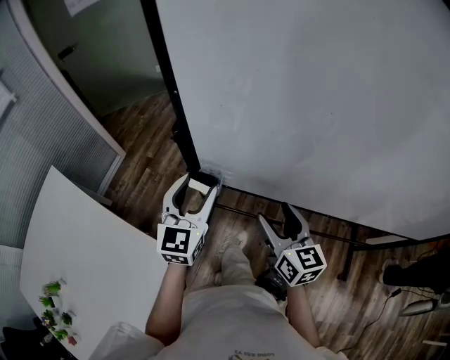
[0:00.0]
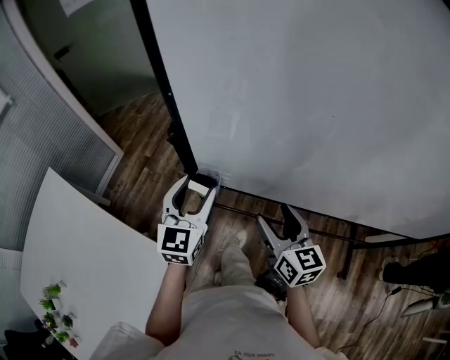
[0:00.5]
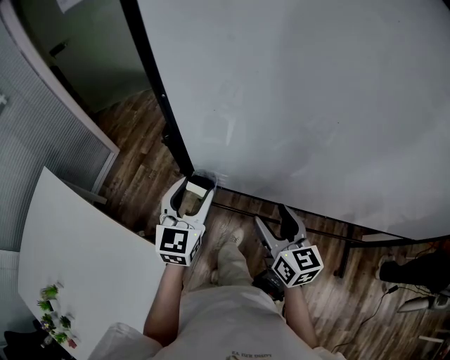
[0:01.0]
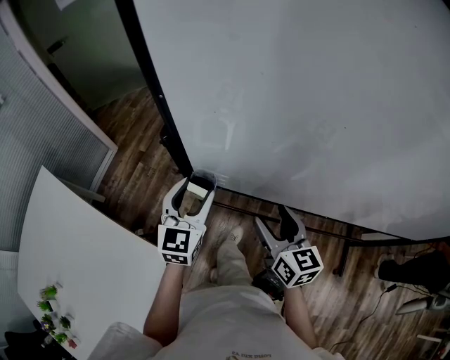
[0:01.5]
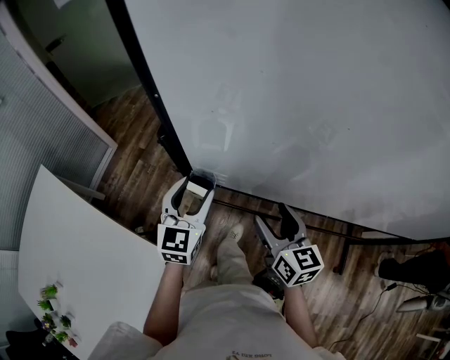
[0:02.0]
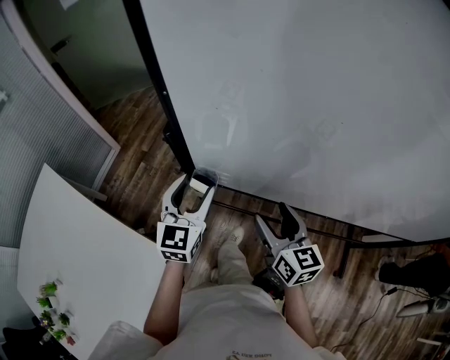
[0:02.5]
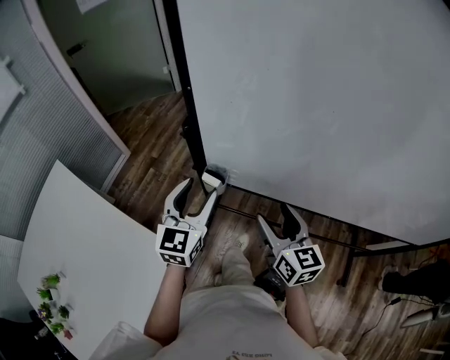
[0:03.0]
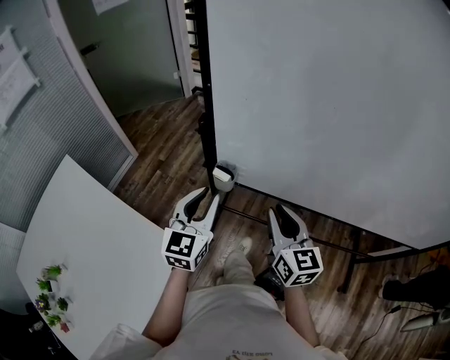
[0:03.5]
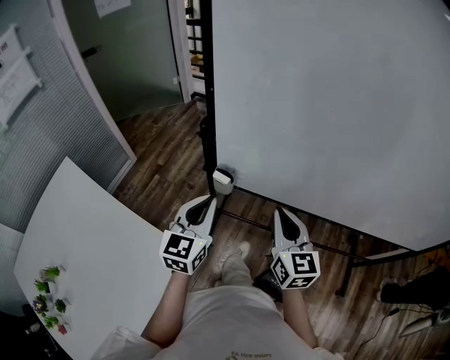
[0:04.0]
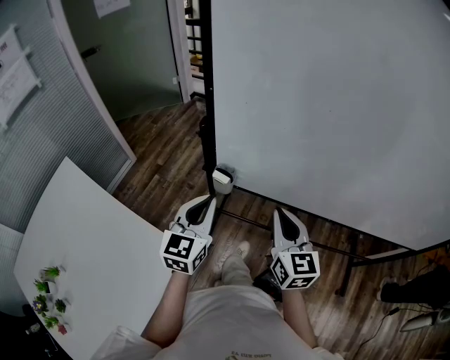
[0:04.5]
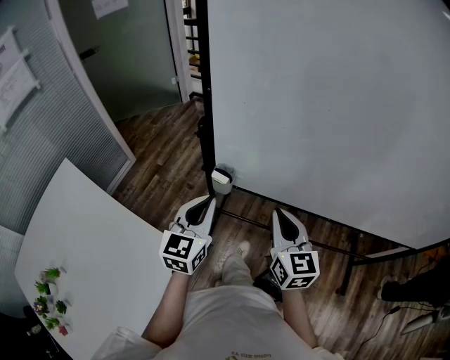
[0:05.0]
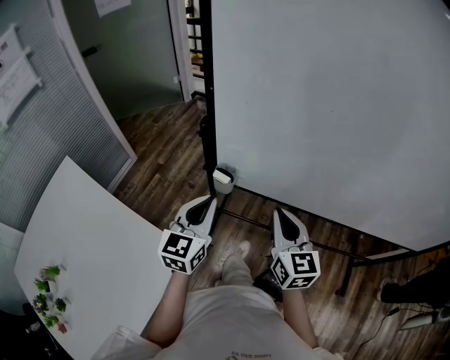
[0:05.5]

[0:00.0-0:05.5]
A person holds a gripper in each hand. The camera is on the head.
0:00.0 to 0:02.0: The left gripper moves downward, approximately 5 cm.
0:02.0 to 0:03.5: The right gripper moves upward and backward, roughly 10 cm, and closes up, while the left gripper goes some 10 cm backward and upward, and closes.
0:03.5 to 0:05.5: The grippers move only a little.

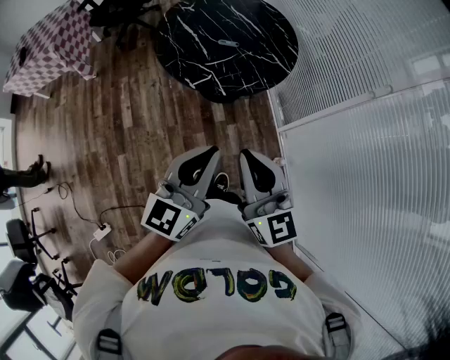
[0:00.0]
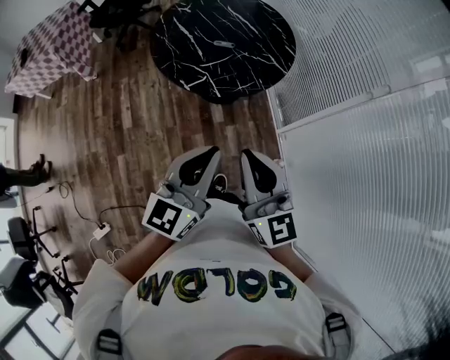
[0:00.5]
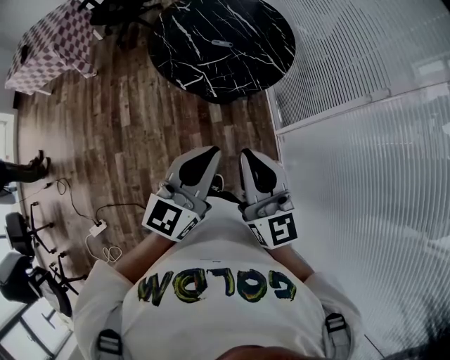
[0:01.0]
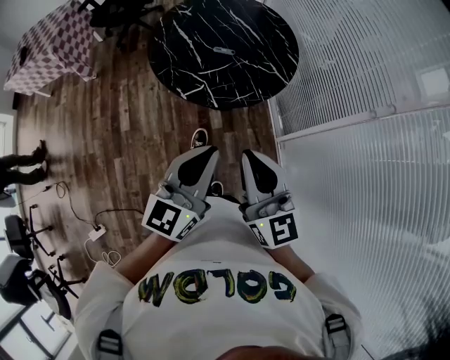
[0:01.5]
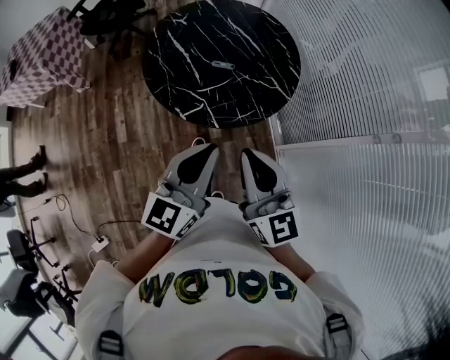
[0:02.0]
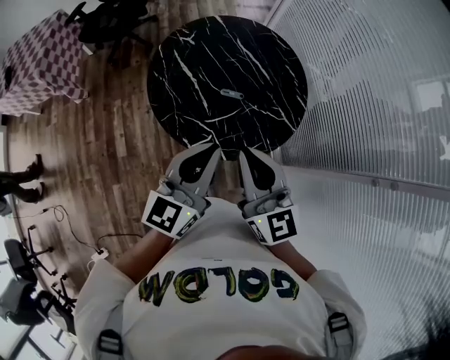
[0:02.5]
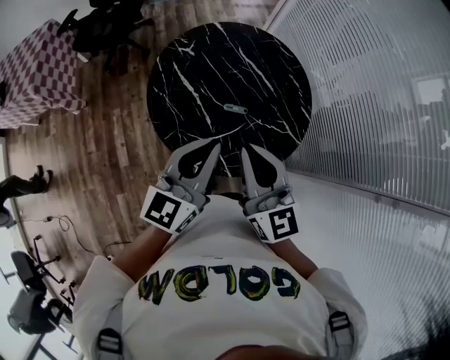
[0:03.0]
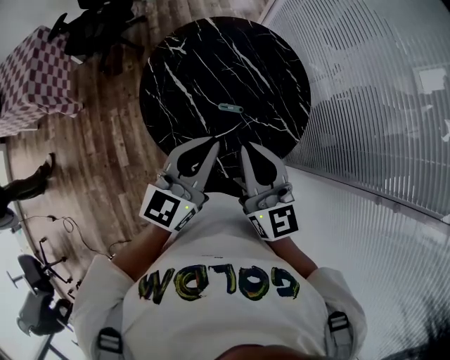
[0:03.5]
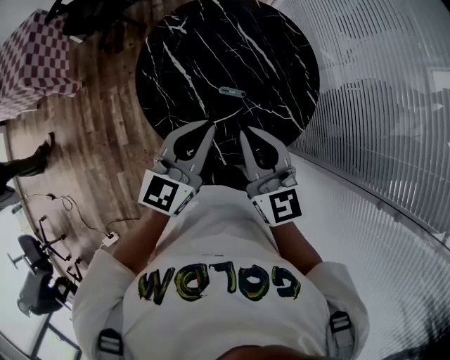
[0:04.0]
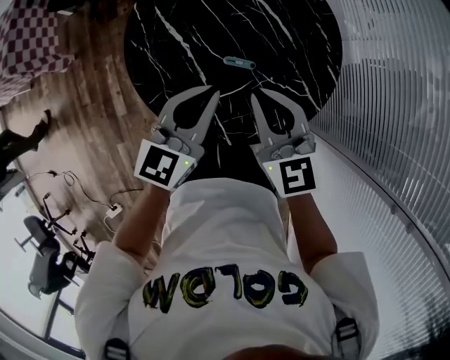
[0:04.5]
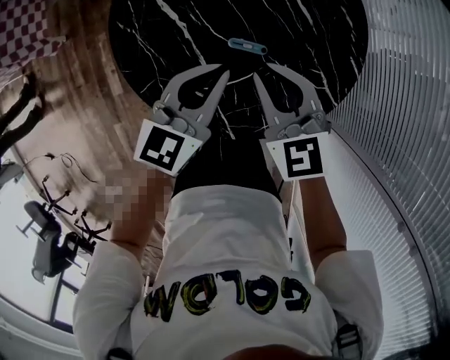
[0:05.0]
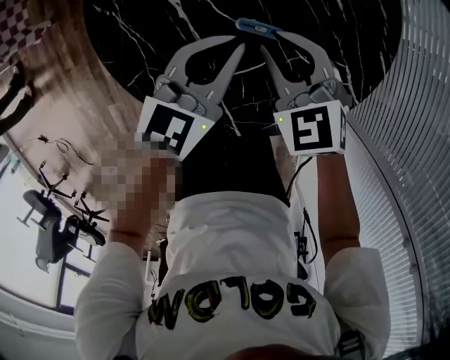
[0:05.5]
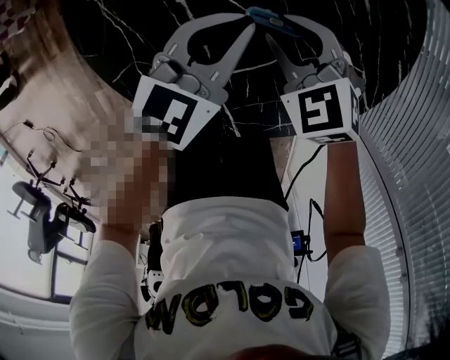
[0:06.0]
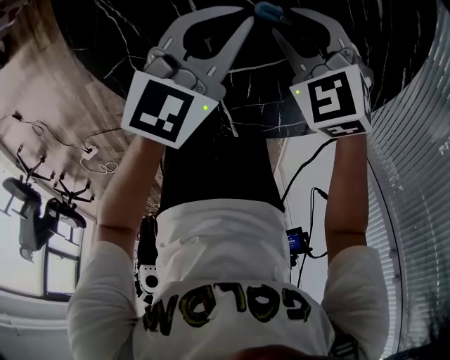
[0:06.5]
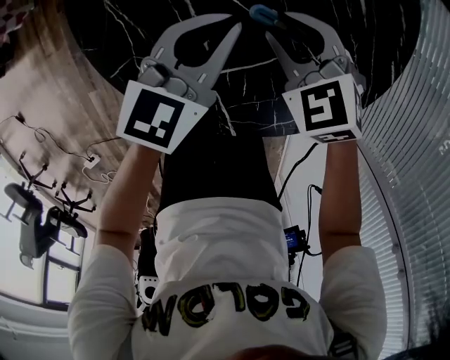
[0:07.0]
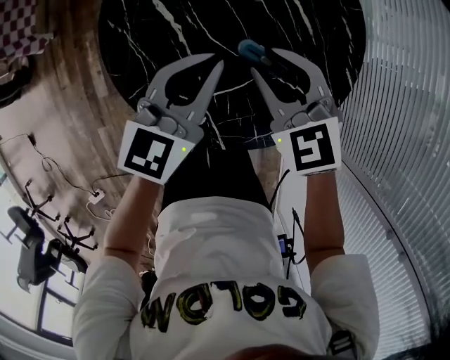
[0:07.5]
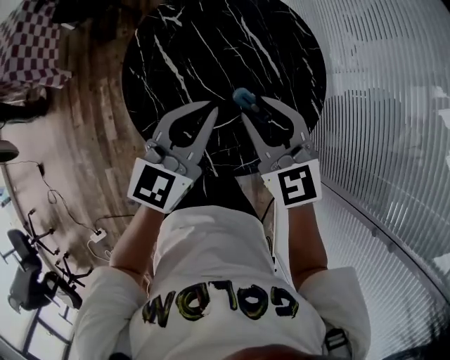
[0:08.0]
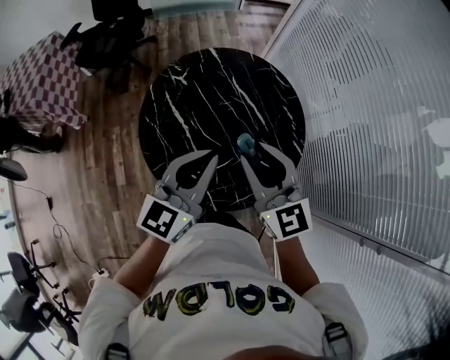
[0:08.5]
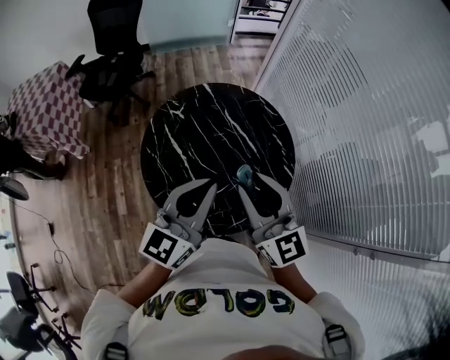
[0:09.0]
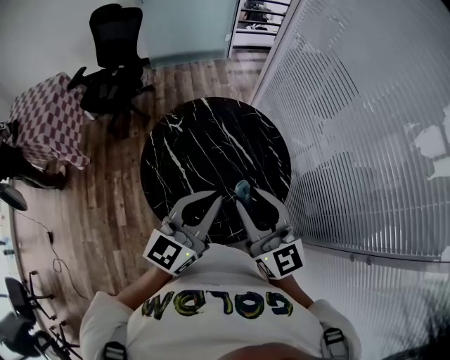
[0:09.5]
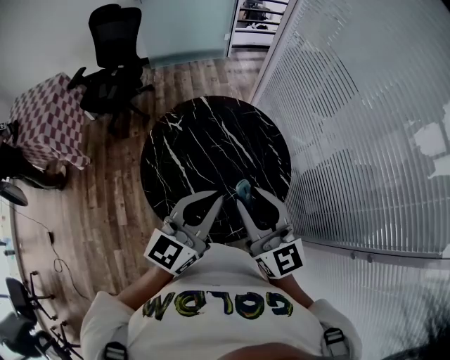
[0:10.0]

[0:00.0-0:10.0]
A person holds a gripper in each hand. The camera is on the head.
0:00.0 to 0:02.0: The two grippers go some 20 cm forward.
0:02.0 to 0:04.0: Both grippers travel together forward, some 30 cm.
0:04.0 to 0:06.0: The right gripper travels downward by roughly 40 cm, tilts its fingers about 40 degrees downward, and opens. Meanwhile the left gripper moves downward and forward, approximately 35 cm.
0:06.0 to 0:08.0: Both grippers move upward, approximately 30 cm. The right gripper rotates roughly 30 degrees.
0:08.0 to 0:10.0: The two grippers go some 20 cm upward and backward. The right gripper tips its fingers upward by approximately 30 degrees.

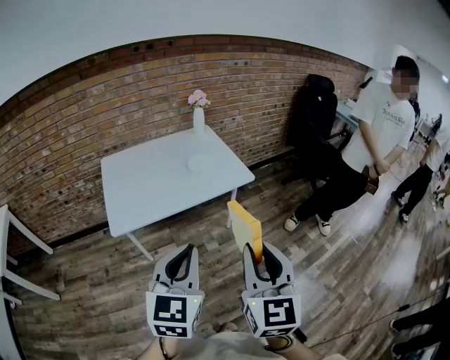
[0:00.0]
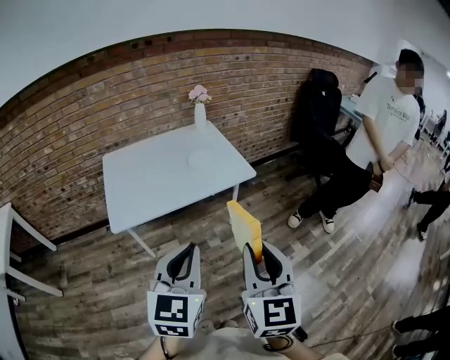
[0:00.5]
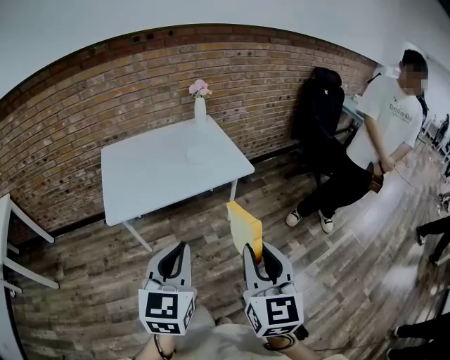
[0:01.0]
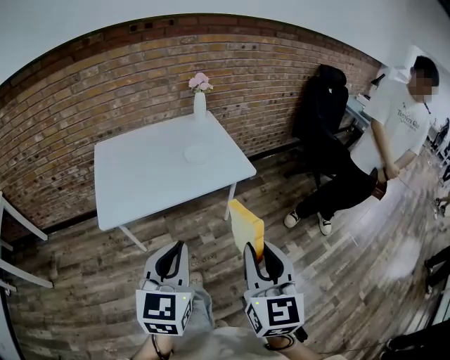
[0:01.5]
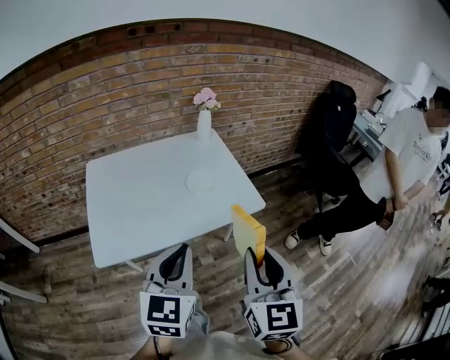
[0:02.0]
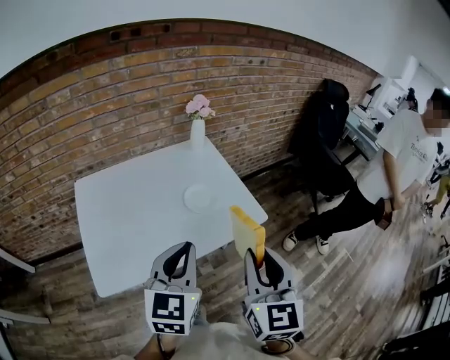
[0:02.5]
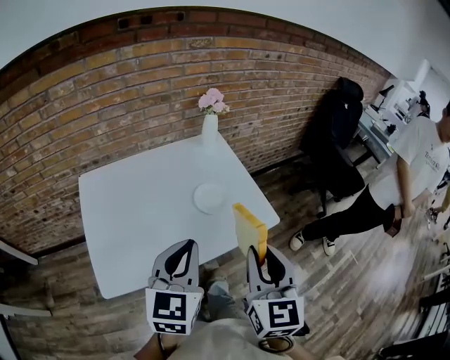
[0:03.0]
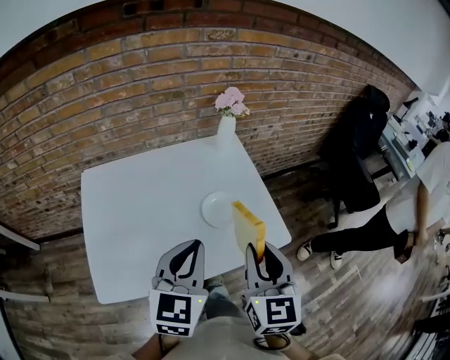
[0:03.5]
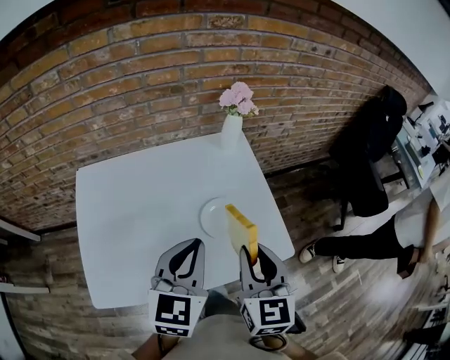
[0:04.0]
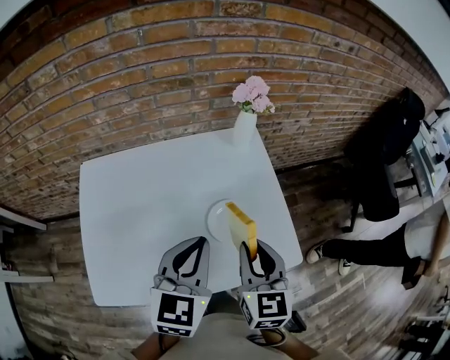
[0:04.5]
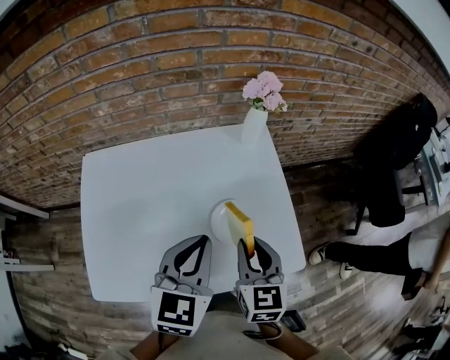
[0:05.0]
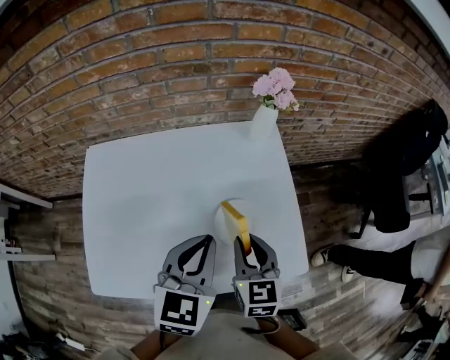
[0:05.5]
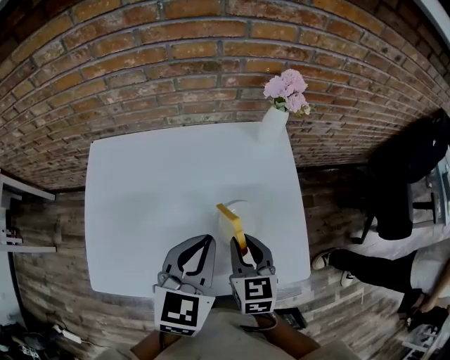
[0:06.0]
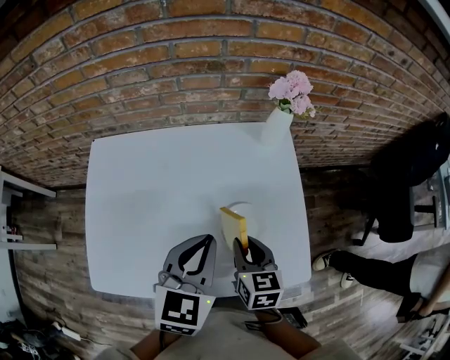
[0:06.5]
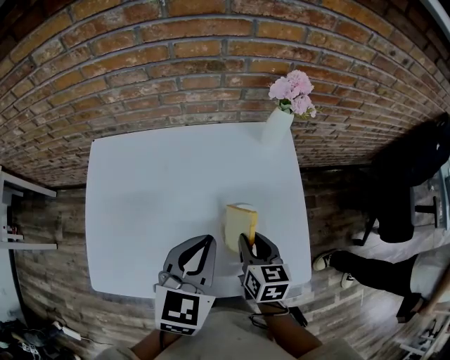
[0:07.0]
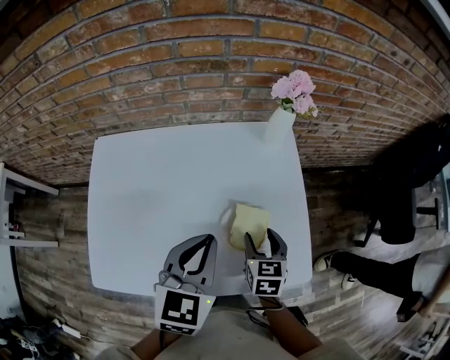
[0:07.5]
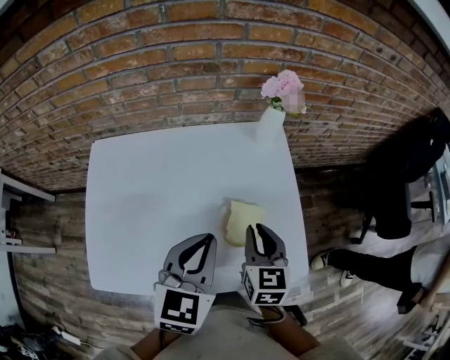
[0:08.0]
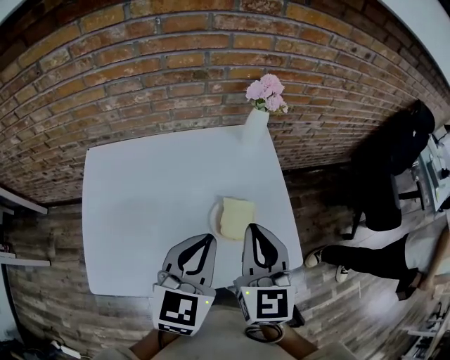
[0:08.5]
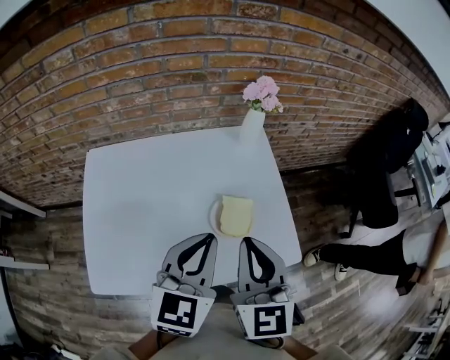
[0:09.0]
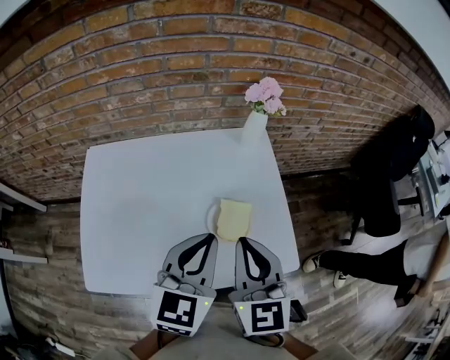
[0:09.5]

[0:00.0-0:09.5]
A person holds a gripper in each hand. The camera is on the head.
0:00.0 to 0:02.0: Both grippers move forward, about 20 cm.
0:02.0 to 0:04.0: The grippers both shift forward by approximately 30 cm.
0:04.0 to 0:05.5: The left gripper moves forward, approximately 5 cm. The right gripper is displaced downward and forward by roughly 15 cm.
0:05.5 to 0:07.5: The right gripper goes about 10 cm downward, and opens.
0:07.5 to 0:09.5: The right gripper goes approximately 20 cm upward, rotates roughly 30 degrees, and closes up. Meanwhile the left gripper changes place by some 5 cm.

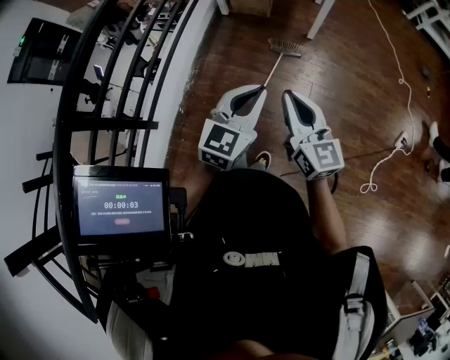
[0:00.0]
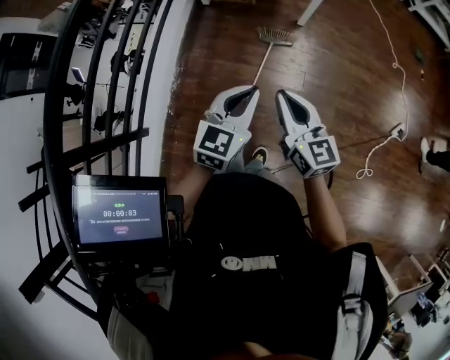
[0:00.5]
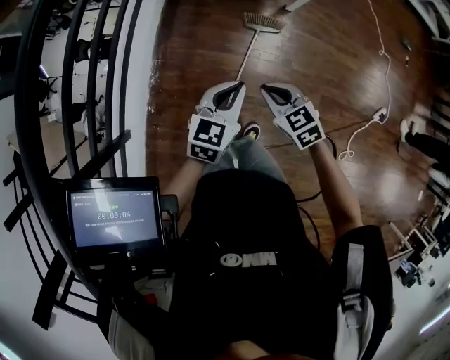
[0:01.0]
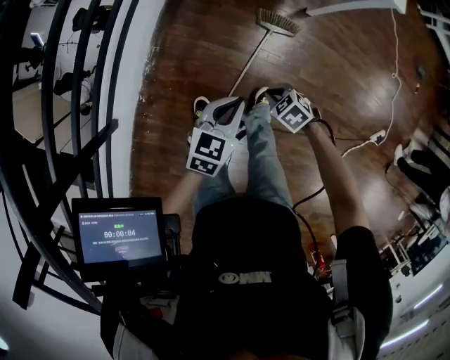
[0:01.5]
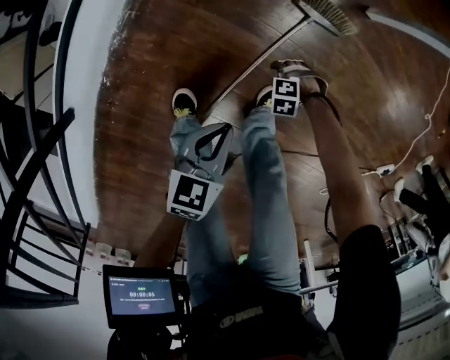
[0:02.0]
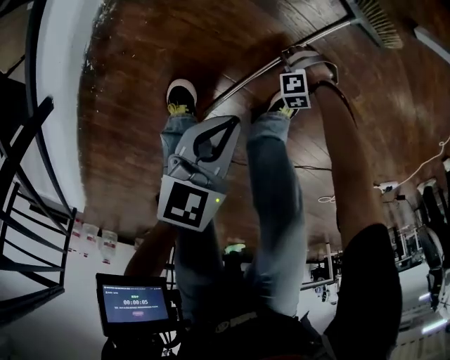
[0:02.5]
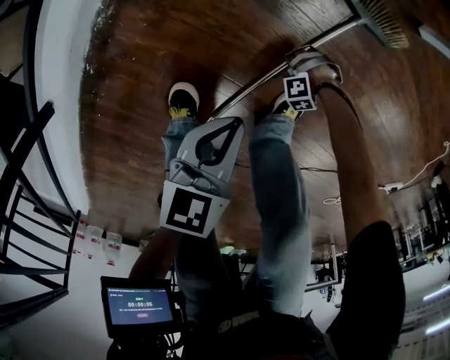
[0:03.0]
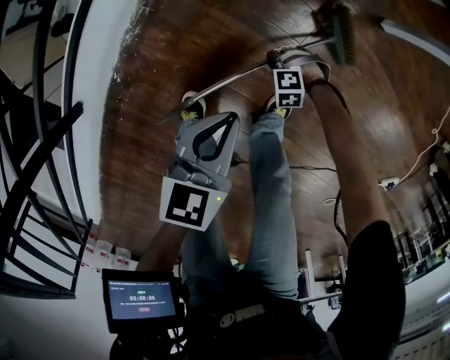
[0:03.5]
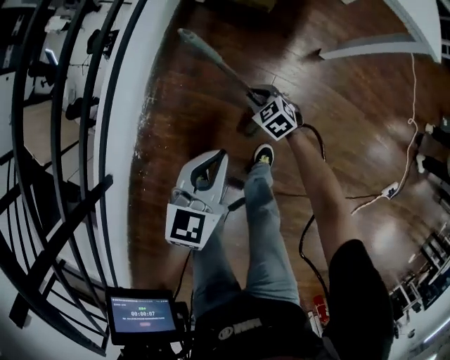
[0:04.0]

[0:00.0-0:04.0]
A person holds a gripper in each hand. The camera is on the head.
0:00.0 to 0:02.0: The left gripper travels downward by some 35 cm, and rotates about 40 degrees. Meanwhile the right gripper shifts approximately 60 cm downward, points its fingers roughly 70 degrees further downward, and opens.
0:02.0 to 0:04.0: The left gripper moves upward, approximately 20 cm, and changes its angle by roughly 20 degrees. Meanwhile the right gripper shifts by roughly 30 cm, changes its angle by some 60 degrees, and closes its fingers.
